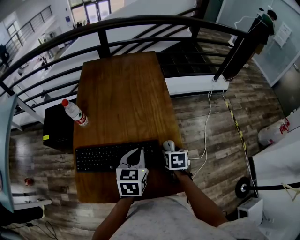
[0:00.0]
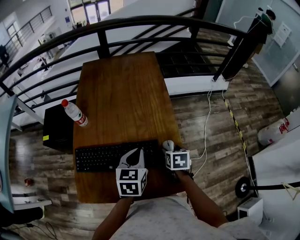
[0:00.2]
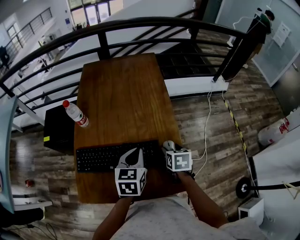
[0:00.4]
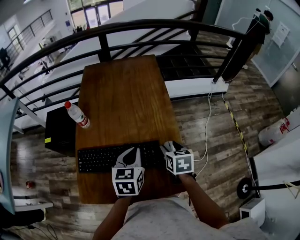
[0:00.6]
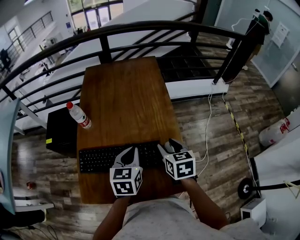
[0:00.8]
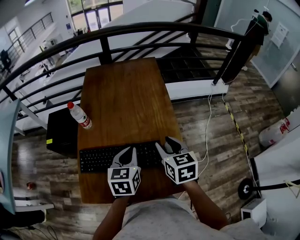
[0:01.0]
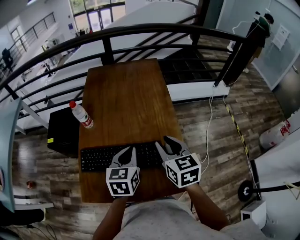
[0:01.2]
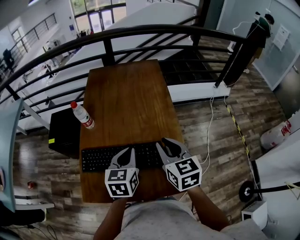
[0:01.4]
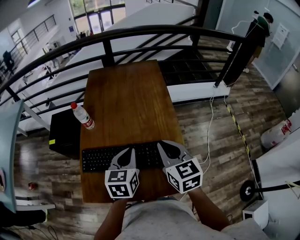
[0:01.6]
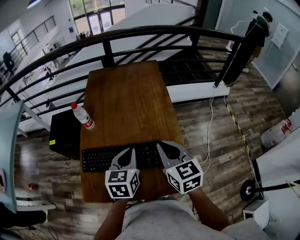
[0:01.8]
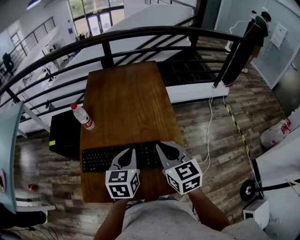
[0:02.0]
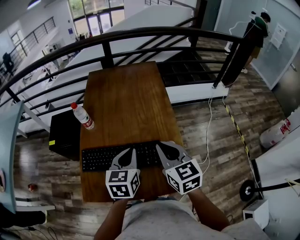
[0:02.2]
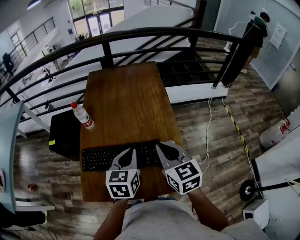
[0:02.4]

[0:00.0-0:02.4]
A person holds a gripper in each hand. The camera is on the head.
0:00.0 to 0:01.2: The right gripper heads upward and to the left, covering about 20 cm, points its fingers approximately 30 degrees further upward, and closes up; the left gripper shifts by some 5 cm.
0:01.2 to 0:02.4: The right gripper closes its fingers.

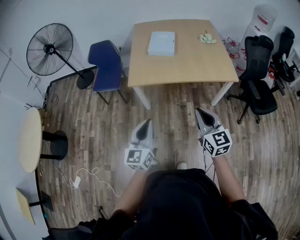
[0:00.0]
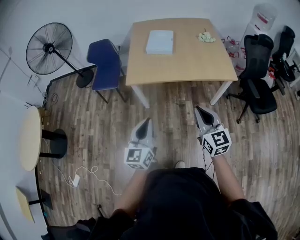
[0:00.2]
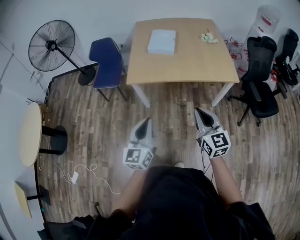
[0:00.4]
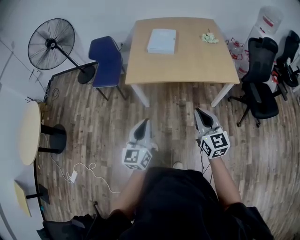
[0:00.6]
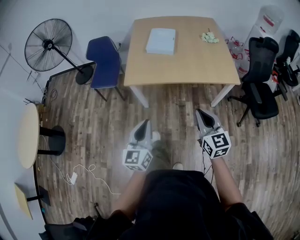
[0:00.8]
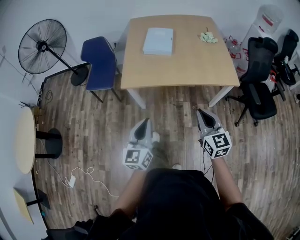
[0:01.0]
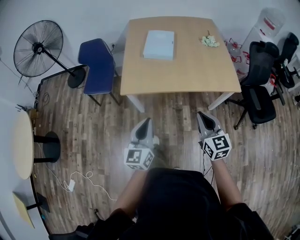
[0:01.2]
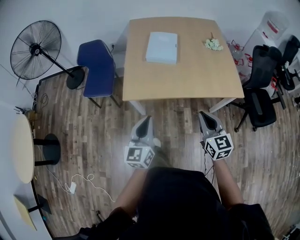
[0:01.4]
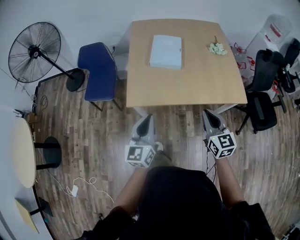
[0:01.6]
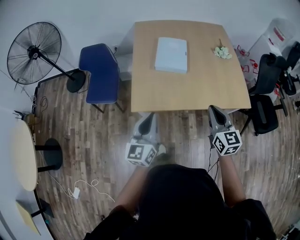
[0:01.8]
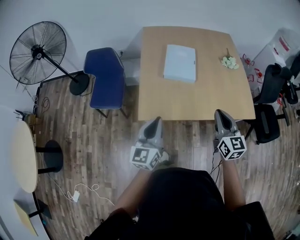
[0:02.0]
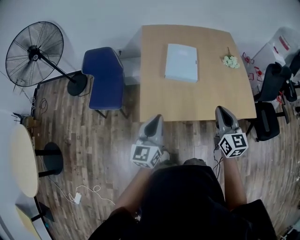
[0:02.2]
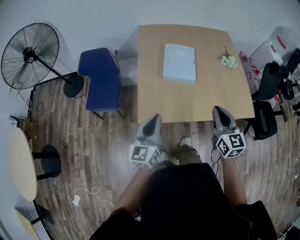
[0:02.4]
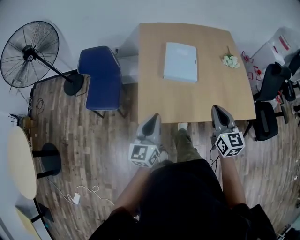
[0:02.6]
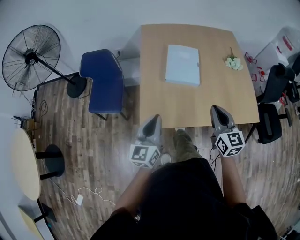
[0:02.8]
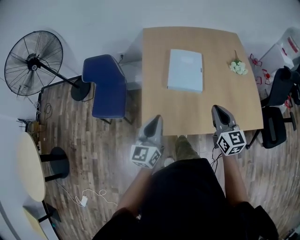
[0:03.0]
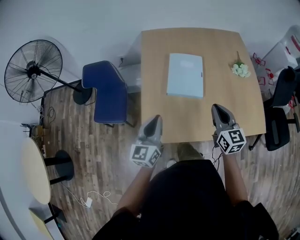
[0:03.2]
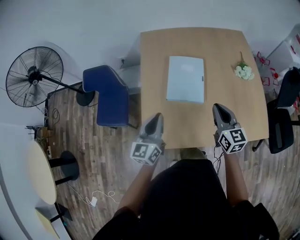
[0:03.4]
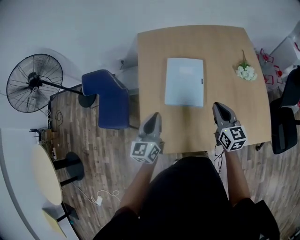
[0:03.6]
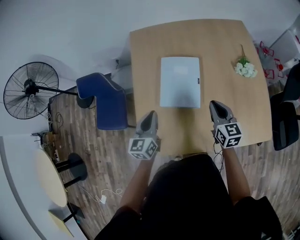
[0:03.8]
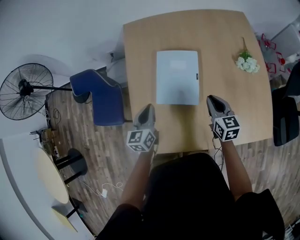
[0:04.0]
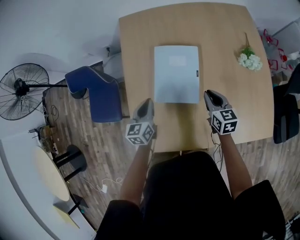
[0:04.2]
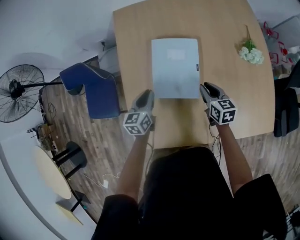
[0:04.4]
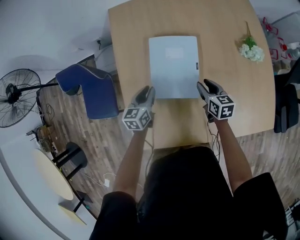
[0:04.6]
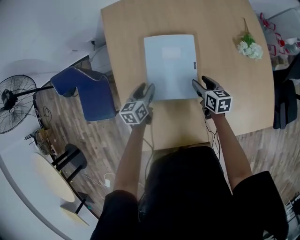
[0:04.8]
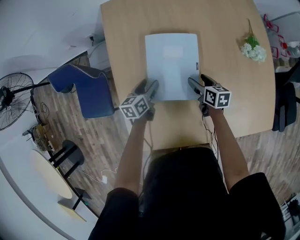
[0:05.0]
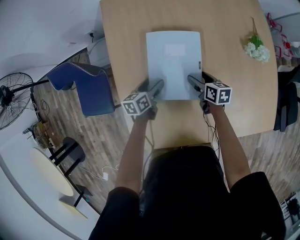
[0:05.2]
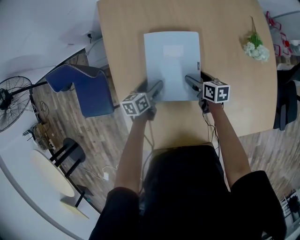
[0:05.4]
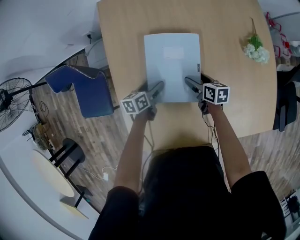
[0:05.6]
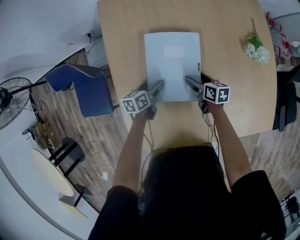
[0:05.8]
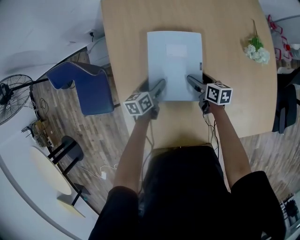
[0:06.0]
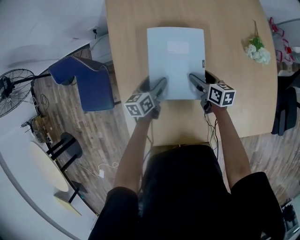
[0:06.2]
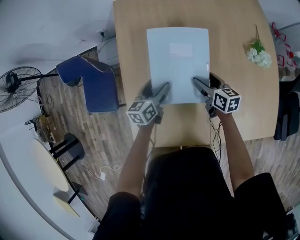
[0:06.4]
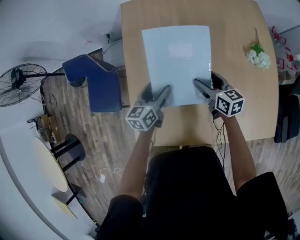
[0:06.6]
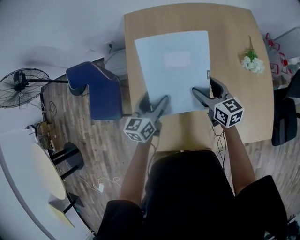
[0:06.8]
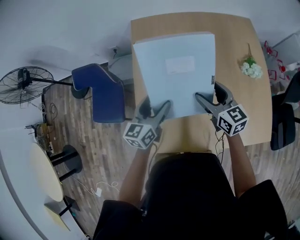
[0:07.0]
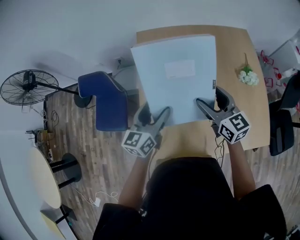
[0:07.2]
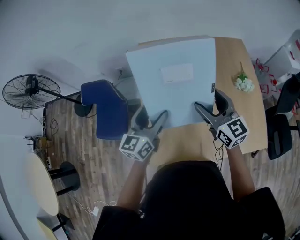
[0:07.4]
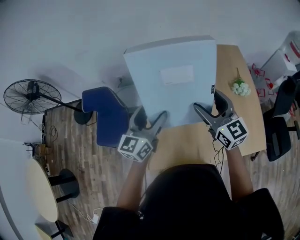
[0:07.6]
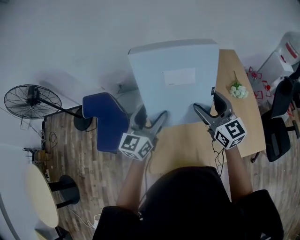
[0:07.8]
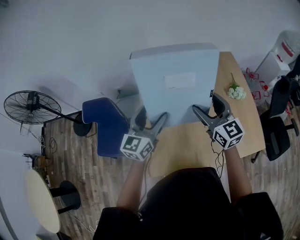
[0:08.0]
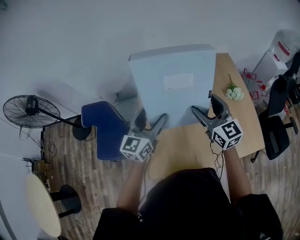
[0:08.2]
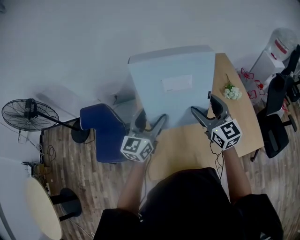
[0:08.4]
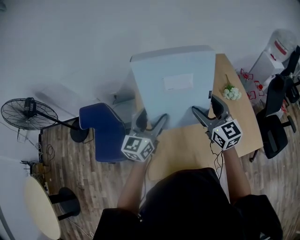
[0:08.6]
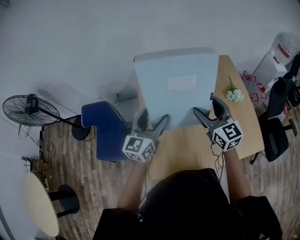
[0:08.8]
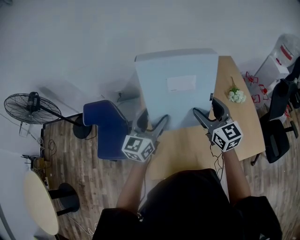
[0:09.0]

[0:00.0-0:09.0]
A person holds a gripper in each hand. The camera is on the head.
0:00.0 to 0:01.6: Both grippers travel together forward, approximately 30 cm.
0:01.6 to 0:03.0: The grippers both shift forward by roughly 25 cm.
0:03.0 to 0:04.4: The two grippers go some 40 cm forward and downward. The left gripper rotates approximately 30 degrees. The right gripper changes its angle by approximately 30 degrees.
0:04.4 to 0:06.0: The grippers both shift downward and forward by about 15 cm. The right gripper rotates approximately 20 degrees, and opens up, while the left gripper rotates some 20 degrees, and opens.
0:06.0 to 0:07.6: Both grippers travel together upward, about 40 cm. The right gripper rolls counterclockwise, seen from behind, by about 50 degrees; the left gripper points its fingers roughly 40 degrees further upward.
0:07.6 to 0:09.0: The grippers make only small movements.

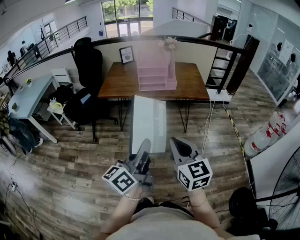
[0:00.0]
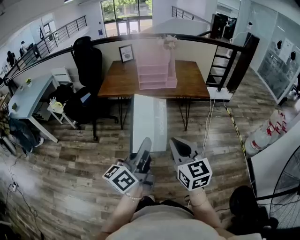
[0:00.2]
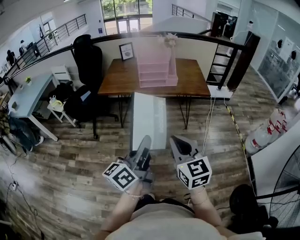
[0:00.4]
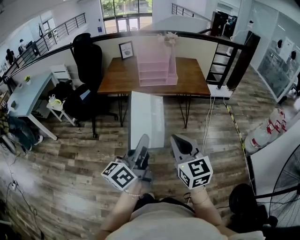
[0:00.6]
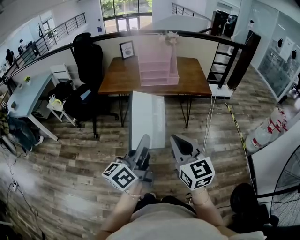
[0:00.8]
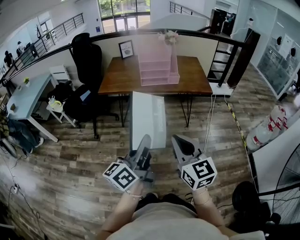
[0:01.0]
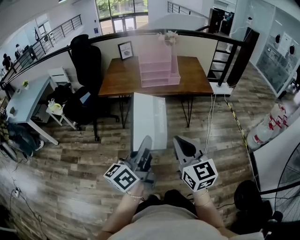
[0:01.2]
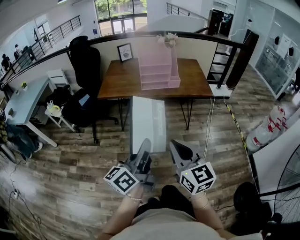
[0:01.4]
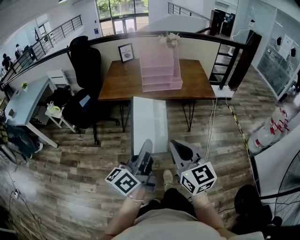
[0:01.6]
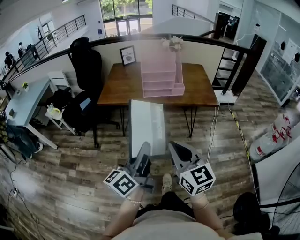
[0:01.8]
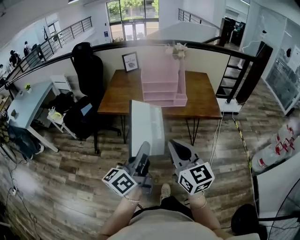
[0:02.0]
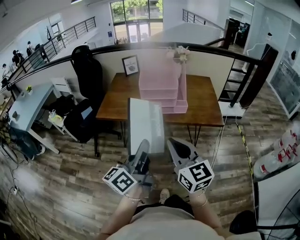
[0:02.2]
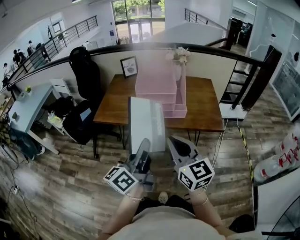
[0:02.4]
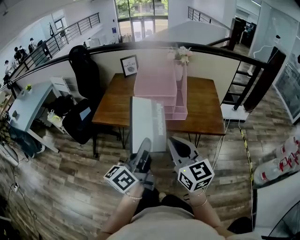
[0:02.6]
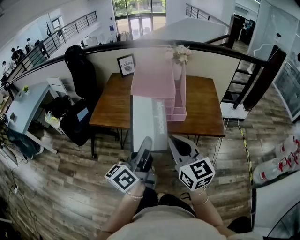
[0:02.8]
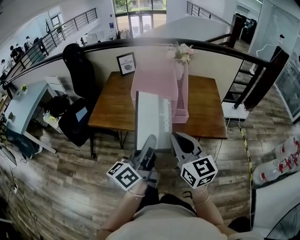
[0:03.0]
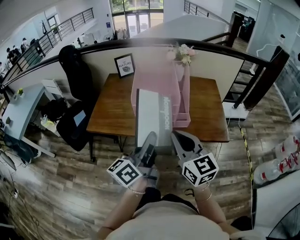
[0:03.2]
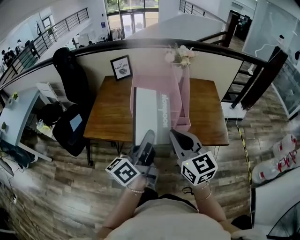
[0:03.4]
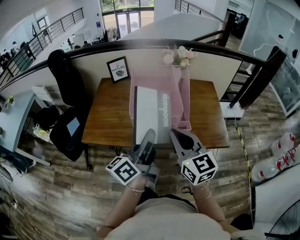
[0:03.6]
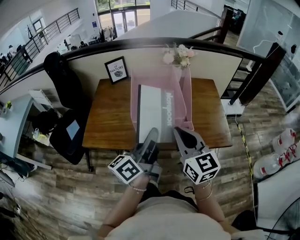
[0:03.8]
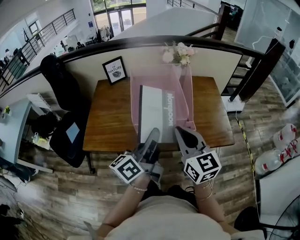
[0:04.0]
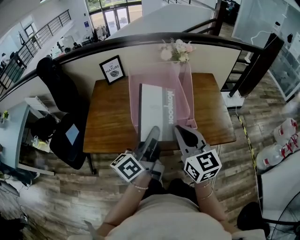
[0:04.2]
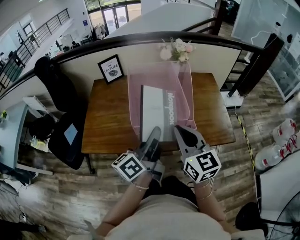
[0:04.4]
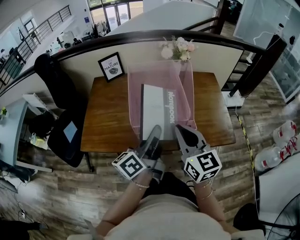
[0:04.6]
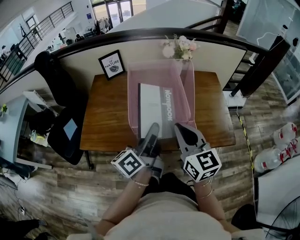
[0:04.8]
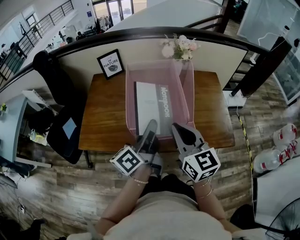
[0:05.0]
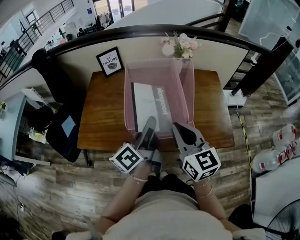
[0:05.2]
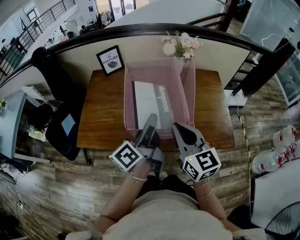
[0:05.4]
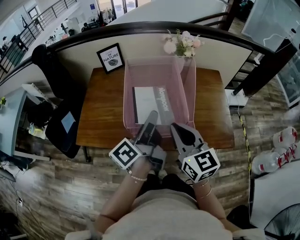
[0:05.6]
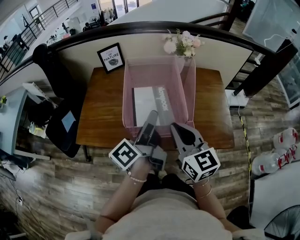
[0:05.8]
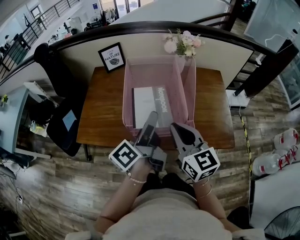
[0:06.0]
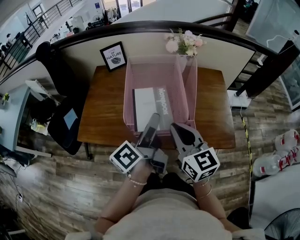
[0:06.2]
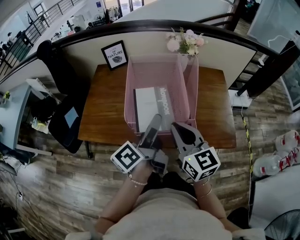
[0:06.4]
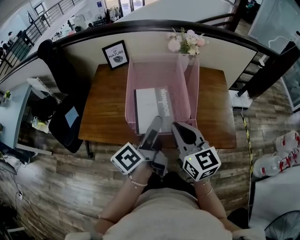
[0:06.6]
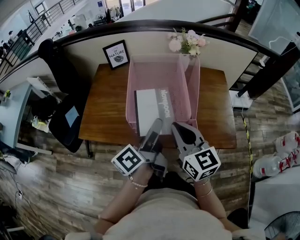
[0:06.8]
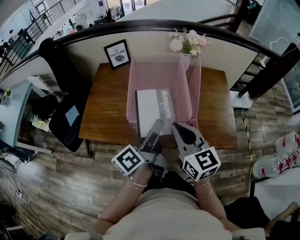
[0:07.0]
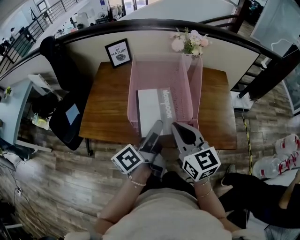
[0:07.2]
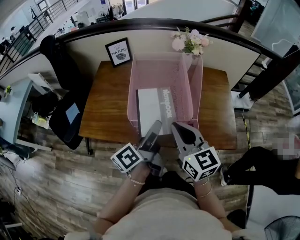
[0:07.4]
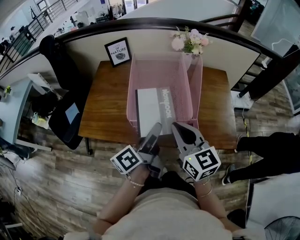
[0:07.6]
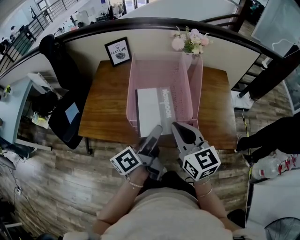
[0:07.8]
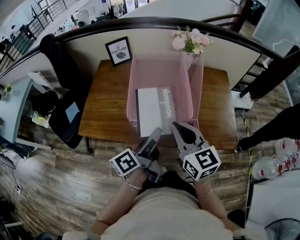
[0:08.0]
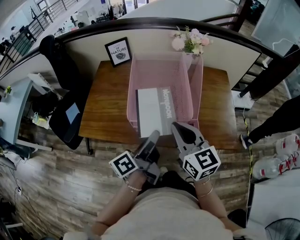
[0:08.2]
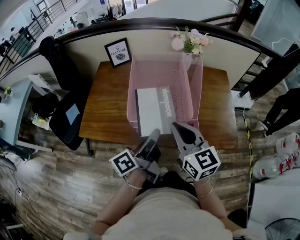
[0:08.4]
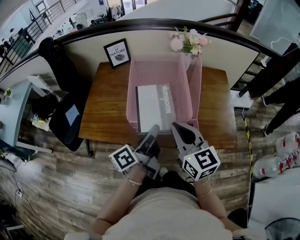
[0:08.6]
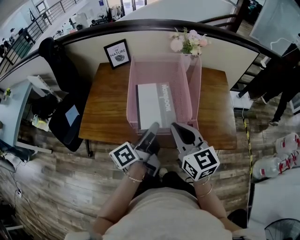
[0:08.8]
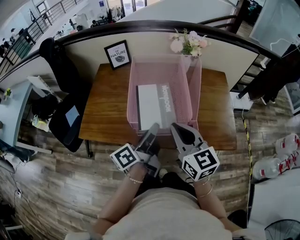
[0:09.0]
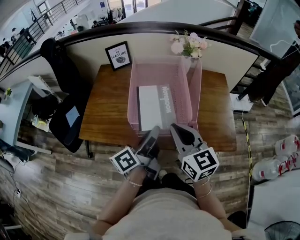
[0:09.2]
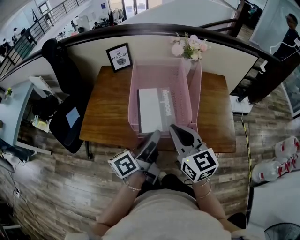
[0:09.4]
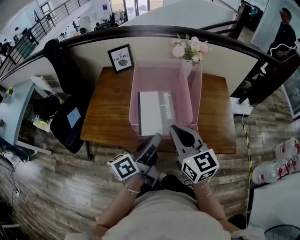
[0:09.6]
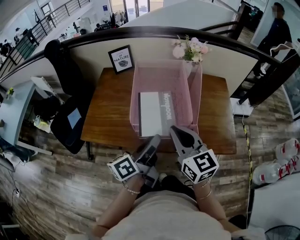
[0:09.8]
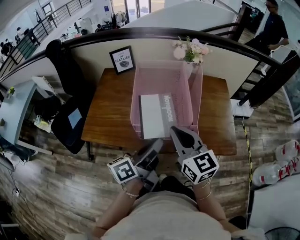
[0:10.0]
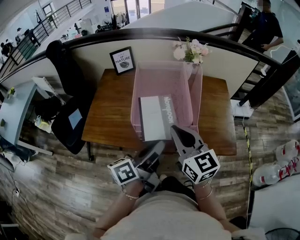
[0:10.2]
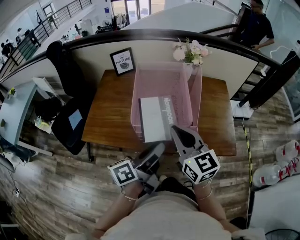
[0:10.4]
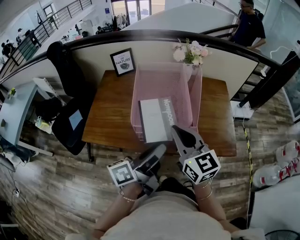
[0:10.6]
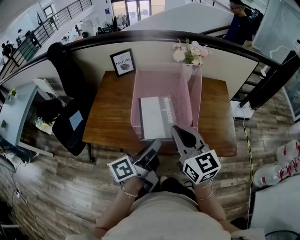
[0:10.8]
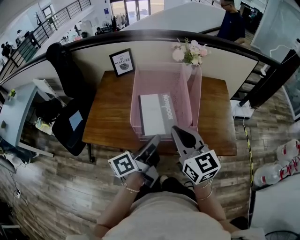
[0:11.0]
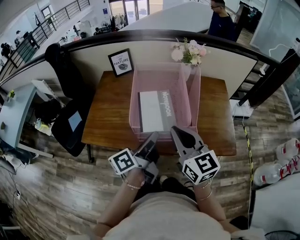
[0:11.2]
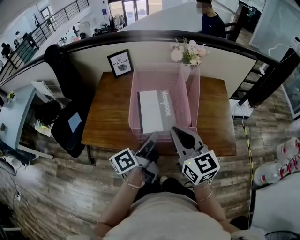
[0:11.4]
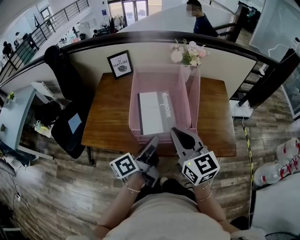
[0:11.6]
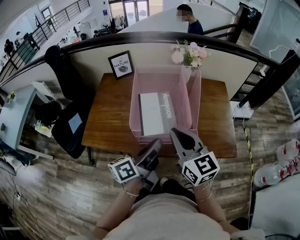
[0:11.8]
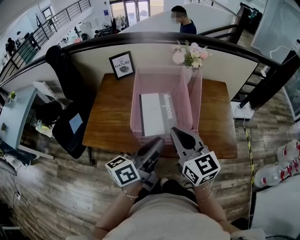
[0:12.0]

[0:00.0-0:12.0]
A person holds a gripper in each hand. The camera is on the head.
0:00.0 to 0:01.6: The right gripper travels to the left by approximately 5 cm. Meanwhile the left gripper goes approximately 5 cm forward.
0:01.6 to 0:03.0: Both grippers move forward, roughly 30 cm.
0:03.0 to 0:04.4: Both grippers move forward, roughly 20 cm.
0:04.4 to 0:06.0: The left gripper is displaced forward by about 5 cm, turns by approximately 20 degrees, and opens up.
0:06.0 to 0:07.6: The left gripper heads downward, covering about 5 cm.
0:07.6 to 0:09.0: The left gripper closes up.
0:09.0 to 0:10.4: The left gripper travels backward by some 5 cm, and opens.
0:10.4 to 0:12.0: The left gripper closes its fingers.
